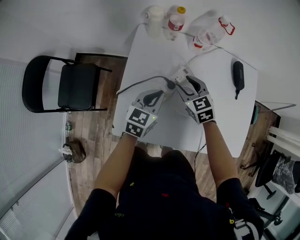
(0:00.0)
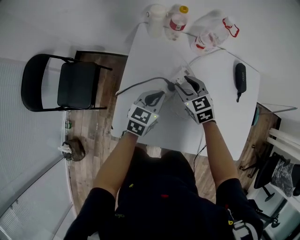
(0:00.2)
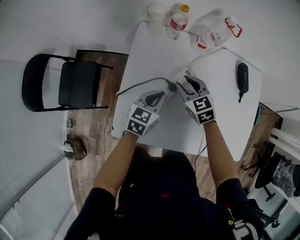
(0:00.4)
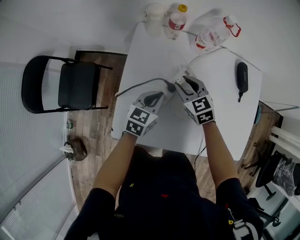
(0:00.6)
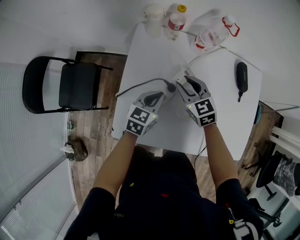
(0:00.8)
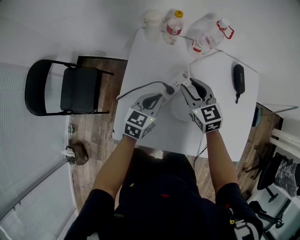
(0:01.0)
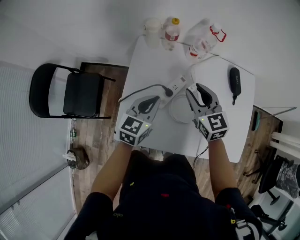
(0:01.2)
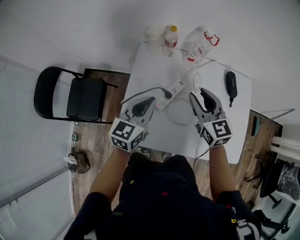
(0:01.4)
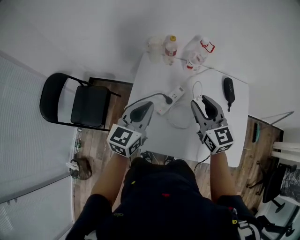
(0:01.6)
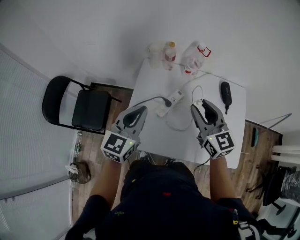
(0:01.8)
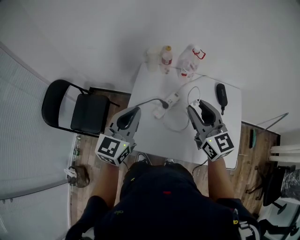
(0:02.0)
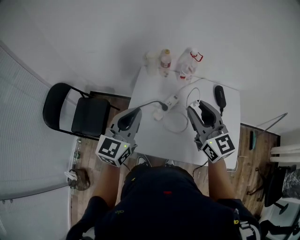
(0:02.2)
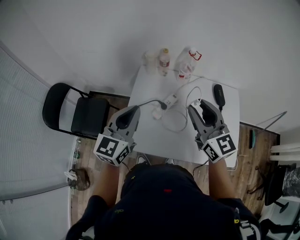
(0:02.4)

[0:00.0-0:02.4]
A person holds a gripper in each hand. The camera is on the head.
0:00.0 to 0:01.2: The left gripper is displaced upward by about 5 cm. The right gripper heads upward, covering approximately 10 cm.
0:01.2 to 0:02.4: The grippers both shift upward and backward by approximately 25 cm. The left gripper swivels some 20 degrees. Meanwhile the right gripper turns by some 20 degrees.

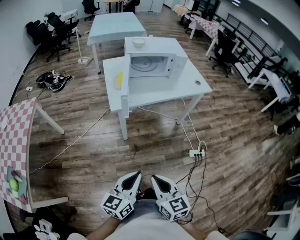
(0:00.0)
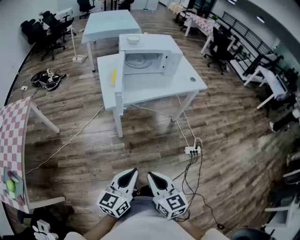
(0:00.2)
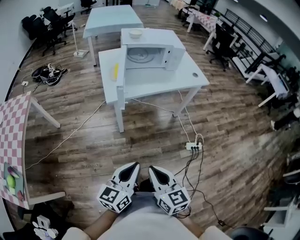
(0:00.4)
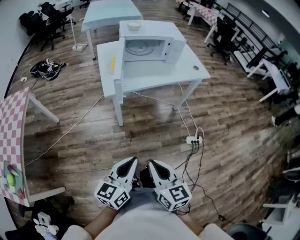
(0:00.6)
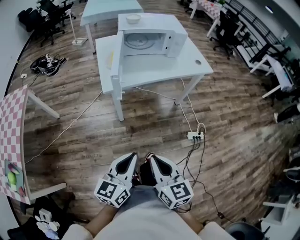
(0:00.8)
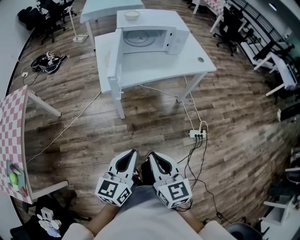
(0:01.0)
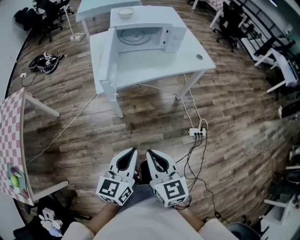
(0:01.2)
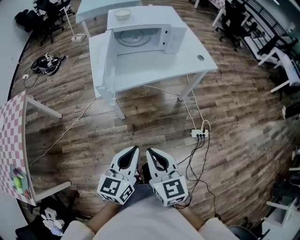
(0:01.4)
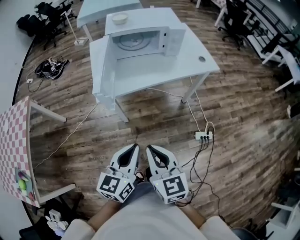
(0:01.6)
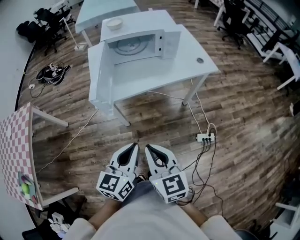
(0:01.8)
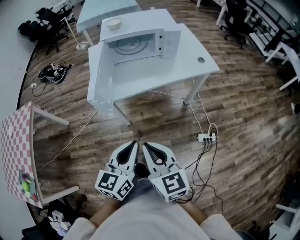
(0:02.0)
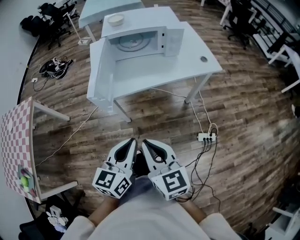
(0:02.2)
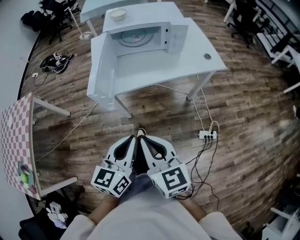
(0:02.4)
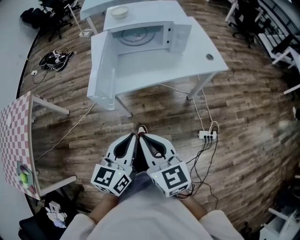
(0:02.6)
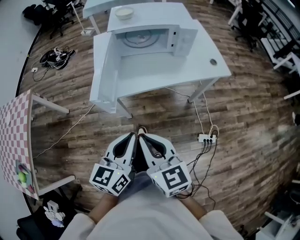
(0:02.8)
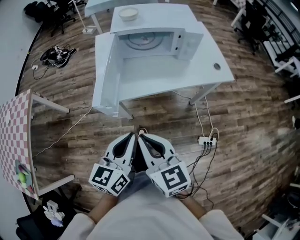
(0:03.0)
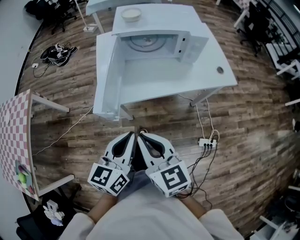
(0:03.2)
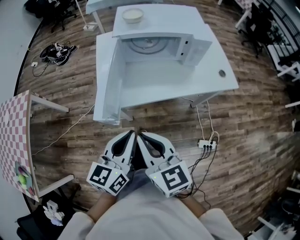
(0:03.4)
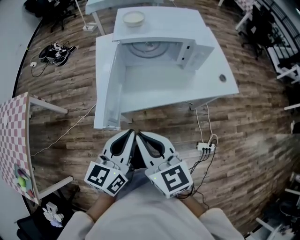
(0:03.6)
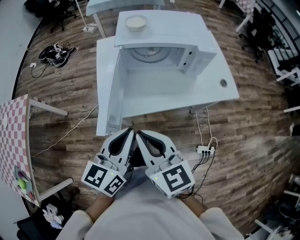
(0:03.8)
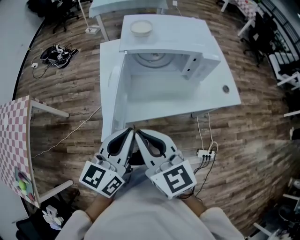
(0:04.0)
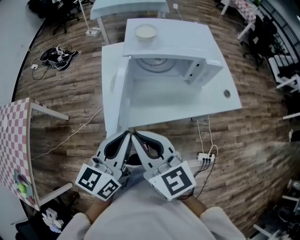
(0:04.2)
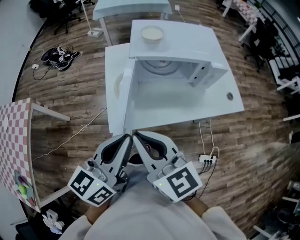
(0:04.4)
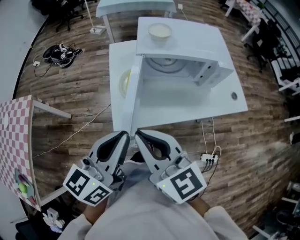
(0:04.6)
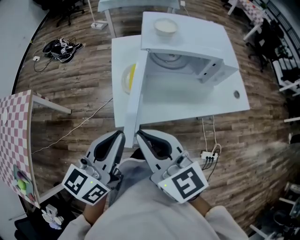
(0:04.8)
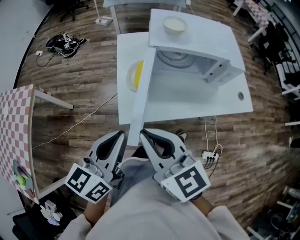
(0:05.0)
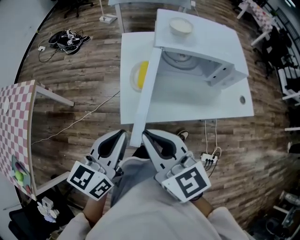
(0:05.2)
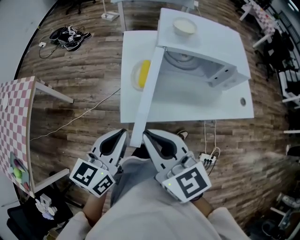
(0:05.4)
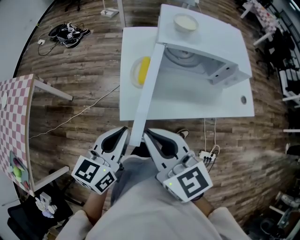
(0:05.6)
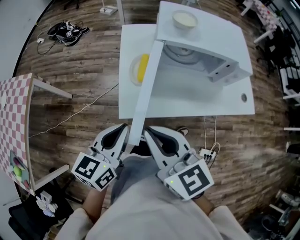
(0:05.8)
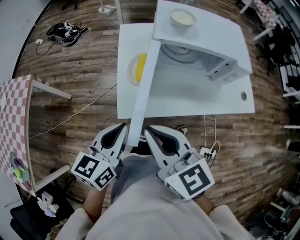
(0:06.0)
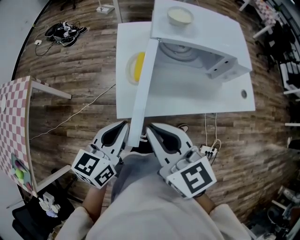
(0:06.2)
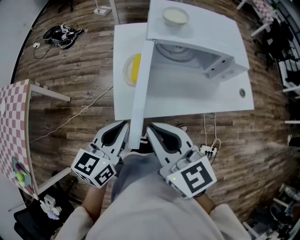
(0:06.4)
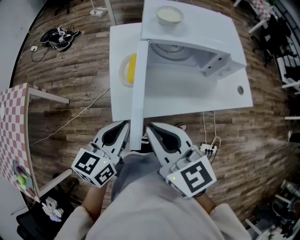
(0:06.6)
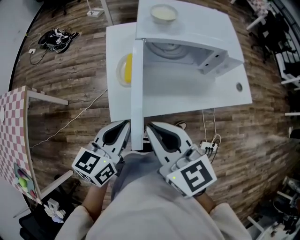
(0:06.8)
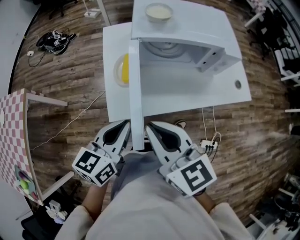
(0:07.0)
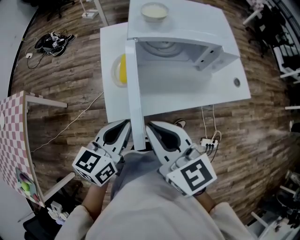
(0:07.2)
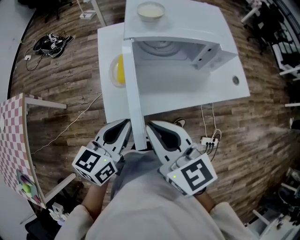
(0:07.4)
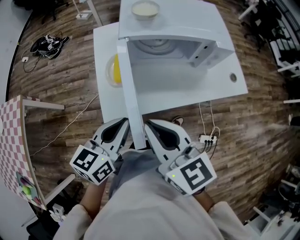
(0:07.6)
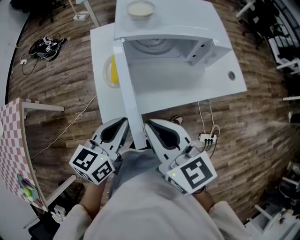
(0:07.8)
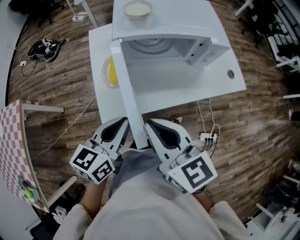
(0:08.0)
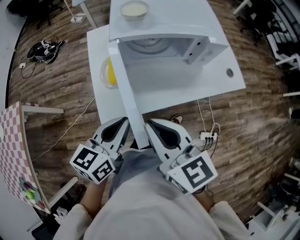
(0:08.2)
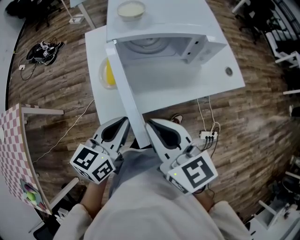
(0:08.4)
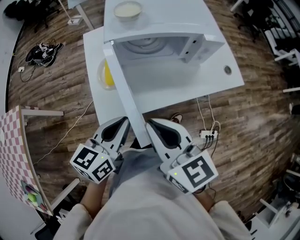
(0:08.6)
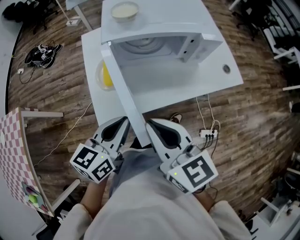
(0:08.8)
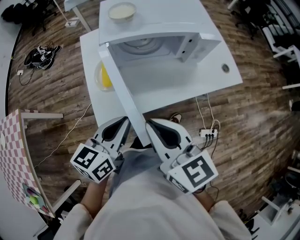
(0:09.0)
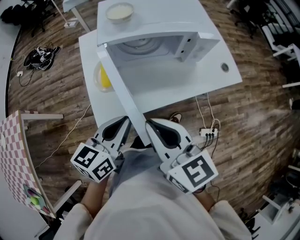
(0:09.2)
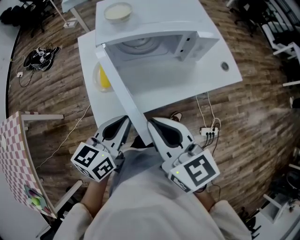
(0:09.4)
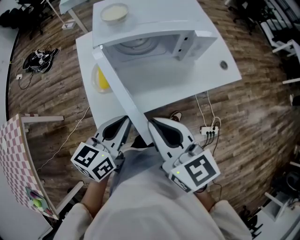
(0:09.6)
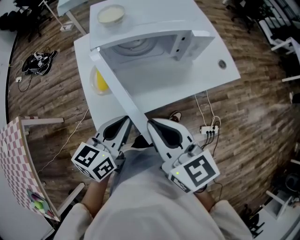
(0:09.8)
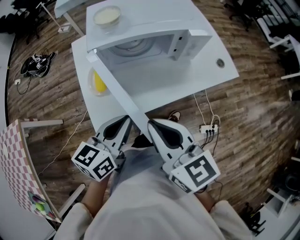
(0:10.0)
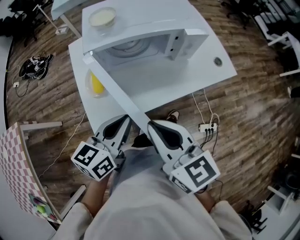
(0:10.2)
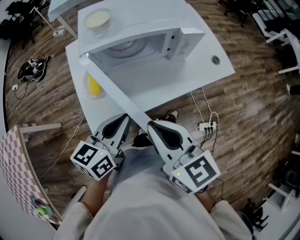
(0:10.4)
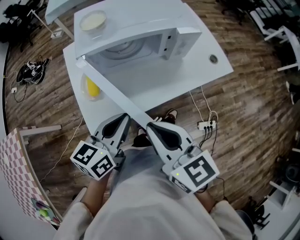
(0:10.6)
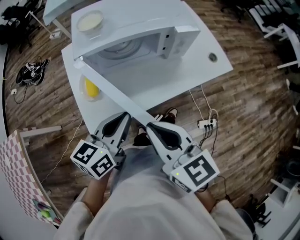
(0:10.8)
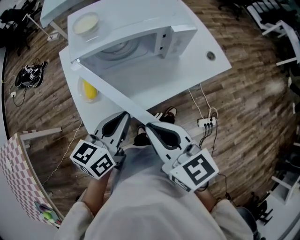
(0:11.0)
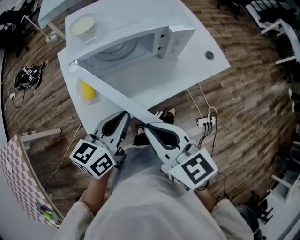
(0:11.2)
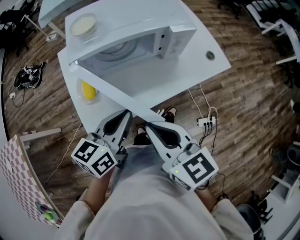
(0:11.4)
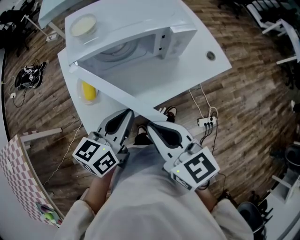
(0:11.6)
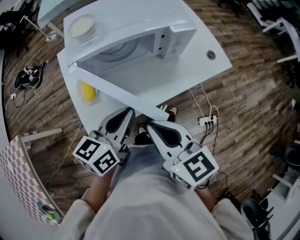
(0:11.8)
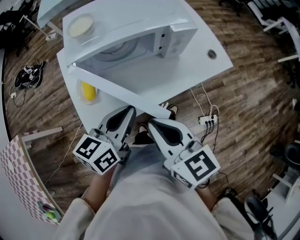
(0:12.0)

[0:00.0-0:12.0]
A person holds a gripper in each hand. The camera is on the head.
0:00.0 to 0:01.6: The right gripper travels forward by roughly 15 cm. Meanwhile the left gripper shifts roughly 15 cm forward and to the right.
0:01.6 to 0:03.0: Both grippers move forward, some 10 cm.
0:03.0 to 0:04.4: Both grippers move forward, upward and to the left, roughly 20 cm.
0:04.4 to 0:06.0: The left gripper moves downward and to the left, approximately 15 cm; the right gripper changes place by roughly 5 cm.
0:06.0 to 0:07.6: The grippers both shift to the right by about 5 cm.
0:07.6 to 0:09.0: The grippers make only small movements.
0:09.0 to 0:10.4: The left gripper ends up about 5 cm from where it was.
0:10.4 to 0:12.0: The left gripper shifts by roughly 5 cm.

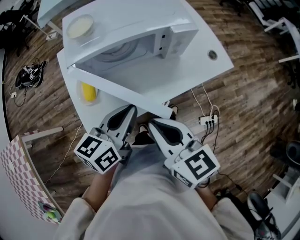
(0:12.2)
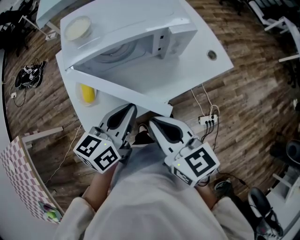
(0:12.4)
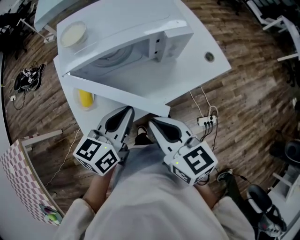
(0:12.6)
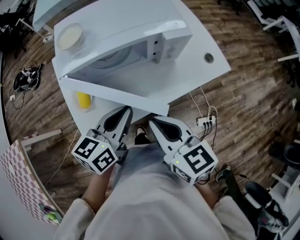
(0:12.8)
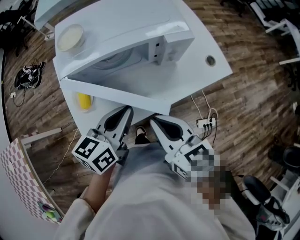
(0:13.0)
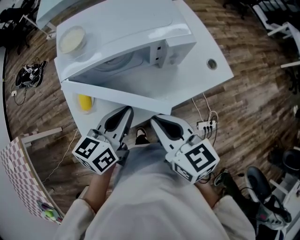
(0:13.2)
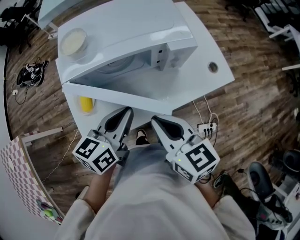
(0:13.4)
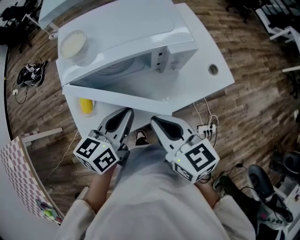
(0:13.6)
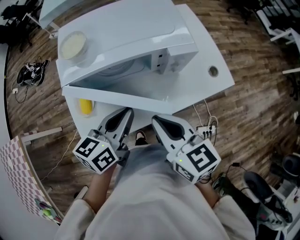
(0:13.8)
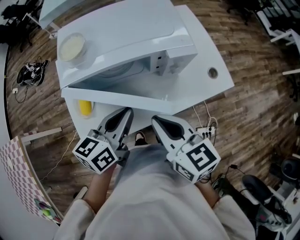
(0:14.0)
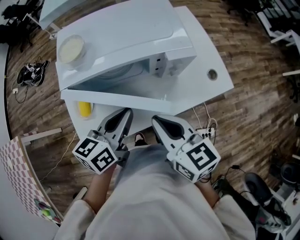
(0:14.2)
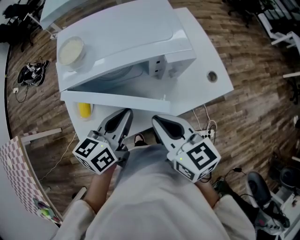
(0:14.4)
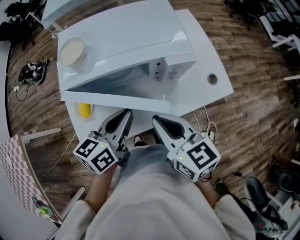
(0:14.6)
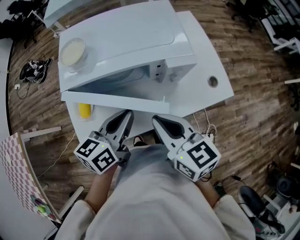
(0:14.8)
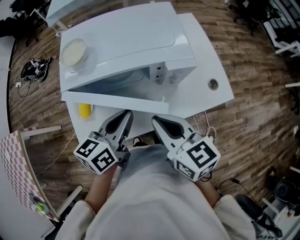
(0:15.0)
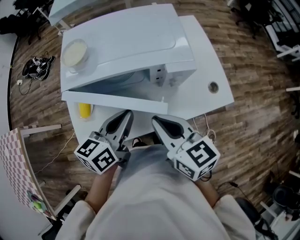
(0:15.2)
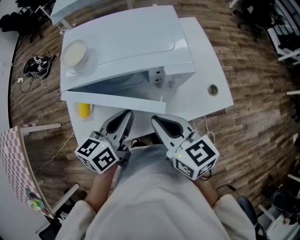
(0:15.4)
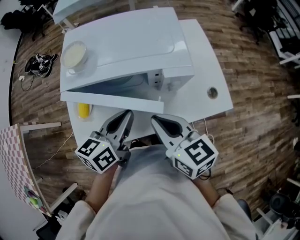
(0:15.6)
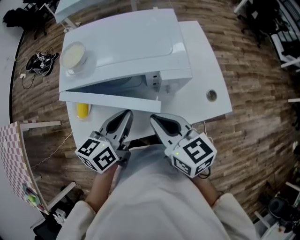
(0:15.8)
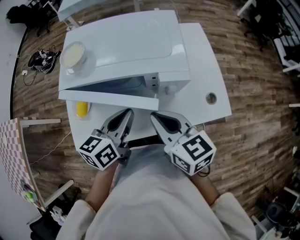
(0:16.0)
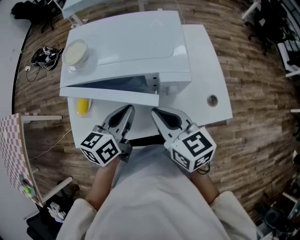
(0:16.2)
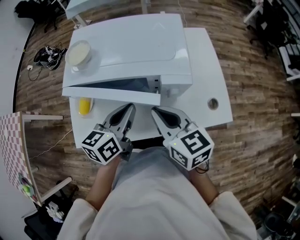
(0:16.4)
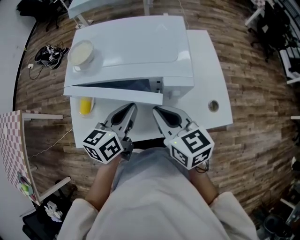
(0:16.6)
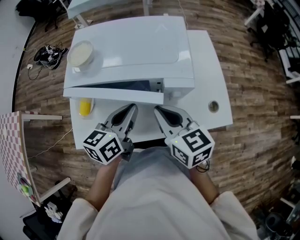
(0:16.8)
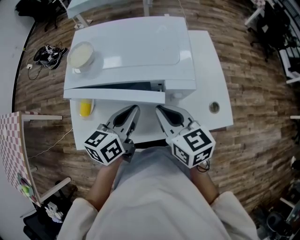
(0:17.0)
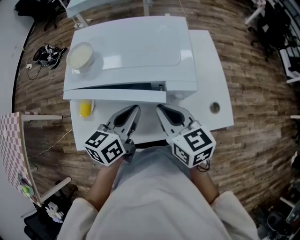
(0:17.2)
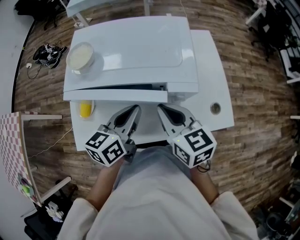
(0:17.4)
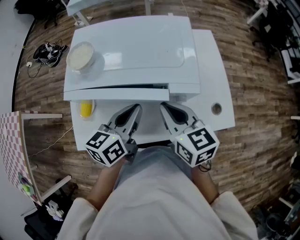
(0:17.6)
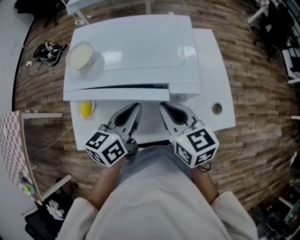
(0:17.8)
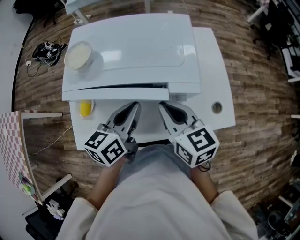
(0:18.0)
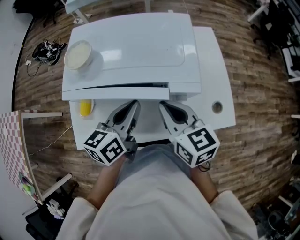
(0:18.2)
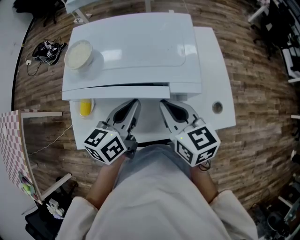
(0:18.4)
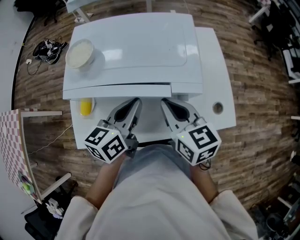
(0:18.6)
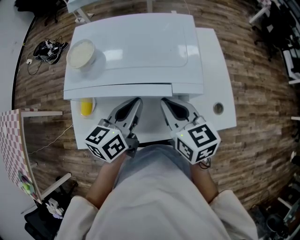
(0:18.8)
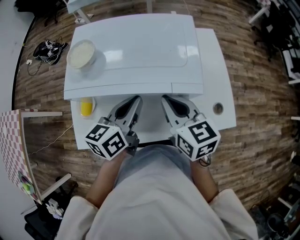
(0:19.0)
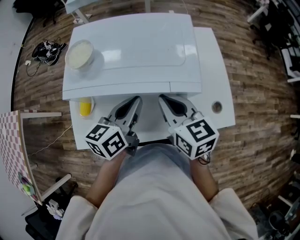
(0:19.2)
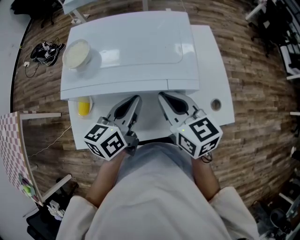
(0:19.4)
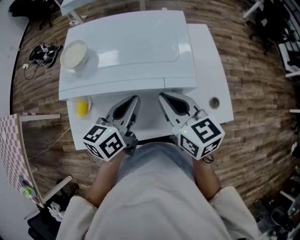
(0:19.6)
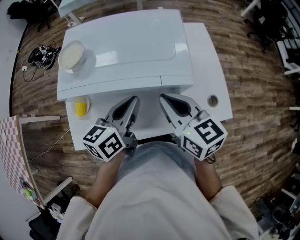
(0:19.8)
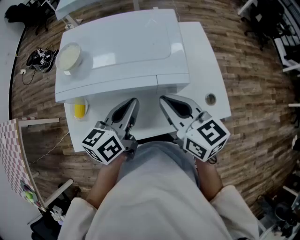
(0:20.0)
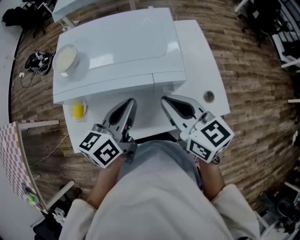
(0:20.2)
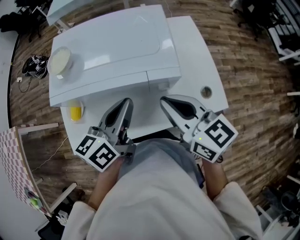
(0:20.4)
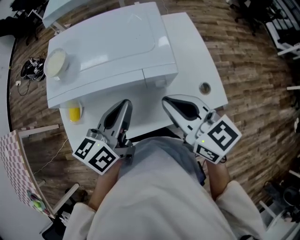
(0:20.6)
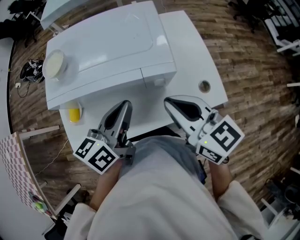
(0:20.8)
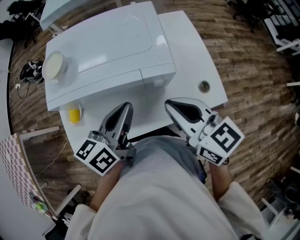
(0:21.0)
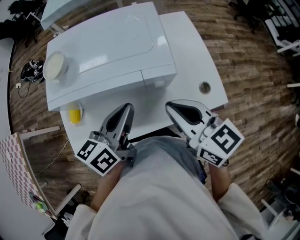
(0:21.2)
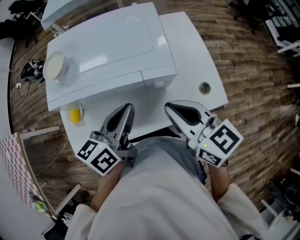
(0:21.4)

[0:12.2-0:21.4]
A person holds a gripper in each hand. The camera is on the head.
0:12.2 to 0:13.8: The two grippers go about 5 cm forward.
0:13.8 to 0:15.2: The grippers make only small movements.
0:15.2 to 0:16.8: The right gripper goes some 5 cm forward. The left gripper changes place by roughly 5 cm.
0:16.8 to 0:19.8: There are only small adjustments of the grippers.
0:19.8 to 0:21.4: The right gripper is displaced backward by roughly 5 cm.
